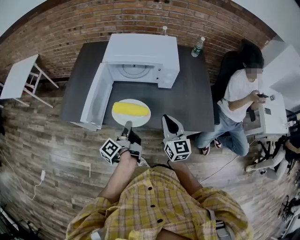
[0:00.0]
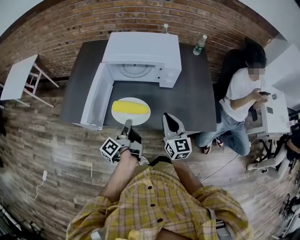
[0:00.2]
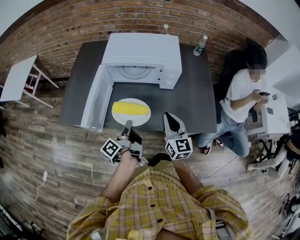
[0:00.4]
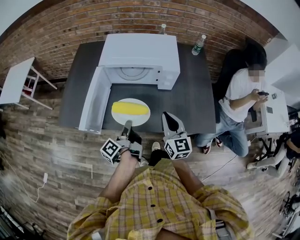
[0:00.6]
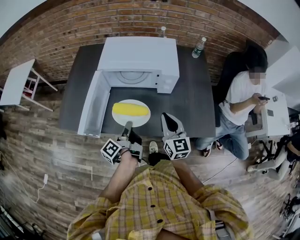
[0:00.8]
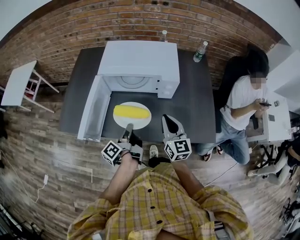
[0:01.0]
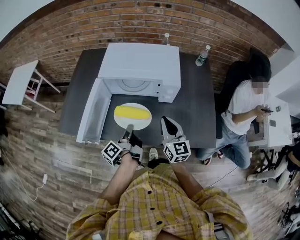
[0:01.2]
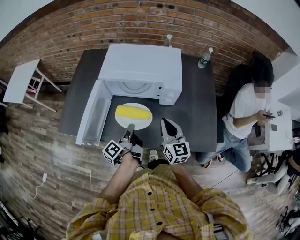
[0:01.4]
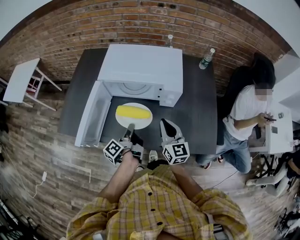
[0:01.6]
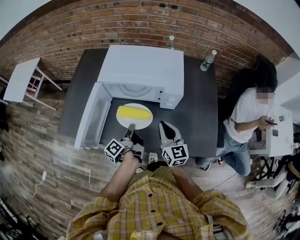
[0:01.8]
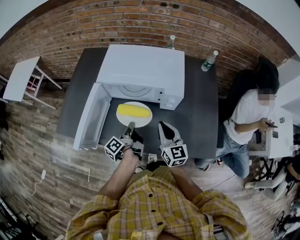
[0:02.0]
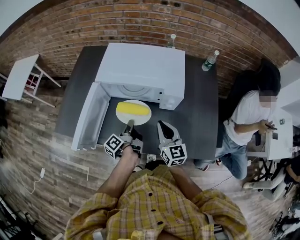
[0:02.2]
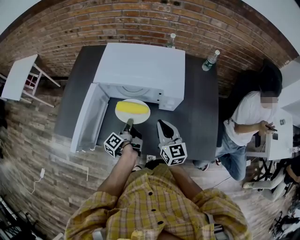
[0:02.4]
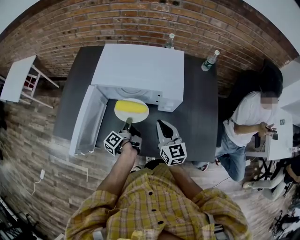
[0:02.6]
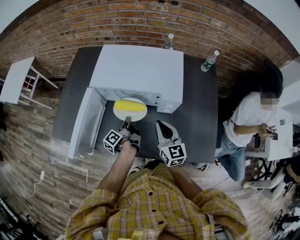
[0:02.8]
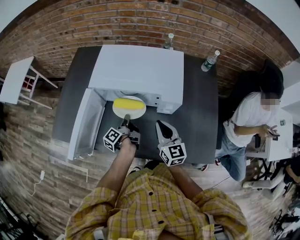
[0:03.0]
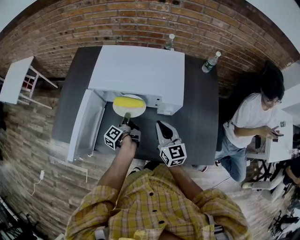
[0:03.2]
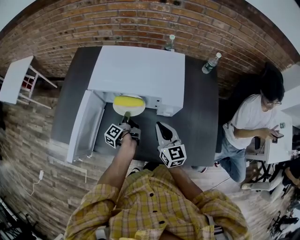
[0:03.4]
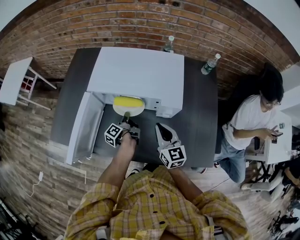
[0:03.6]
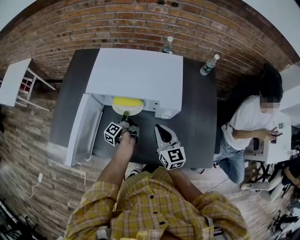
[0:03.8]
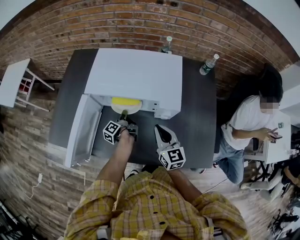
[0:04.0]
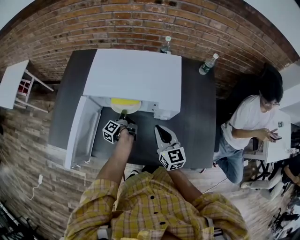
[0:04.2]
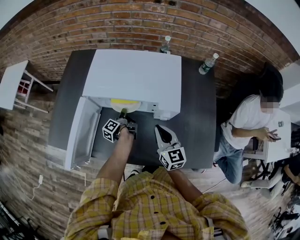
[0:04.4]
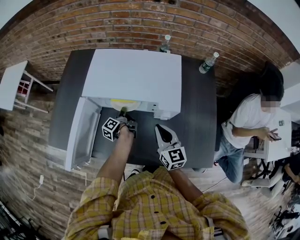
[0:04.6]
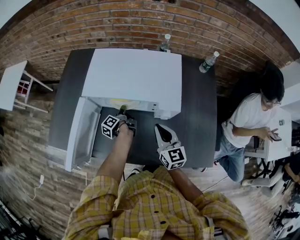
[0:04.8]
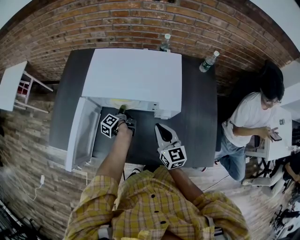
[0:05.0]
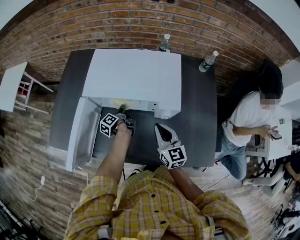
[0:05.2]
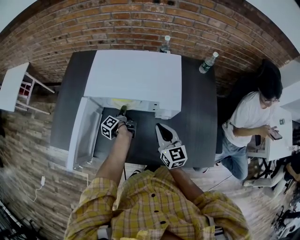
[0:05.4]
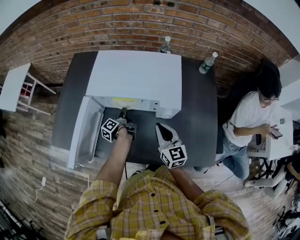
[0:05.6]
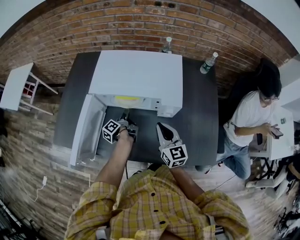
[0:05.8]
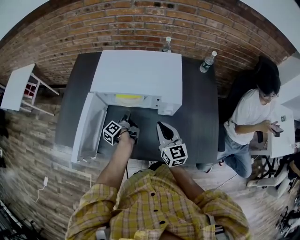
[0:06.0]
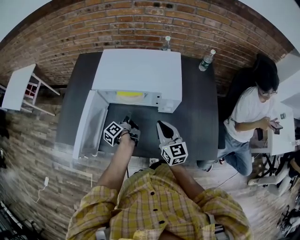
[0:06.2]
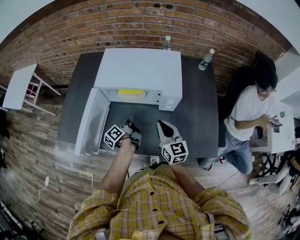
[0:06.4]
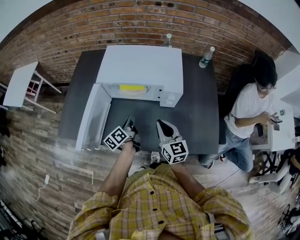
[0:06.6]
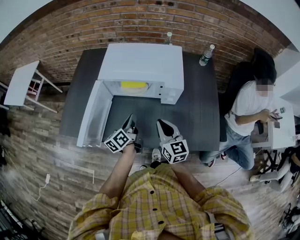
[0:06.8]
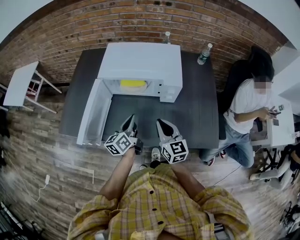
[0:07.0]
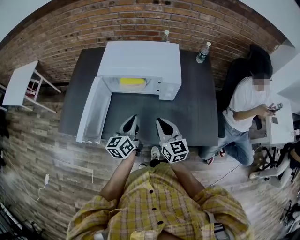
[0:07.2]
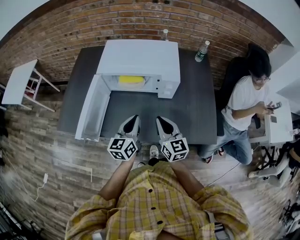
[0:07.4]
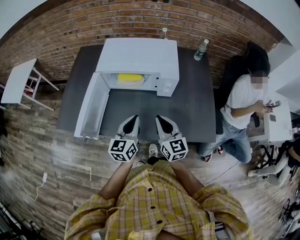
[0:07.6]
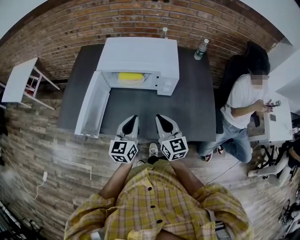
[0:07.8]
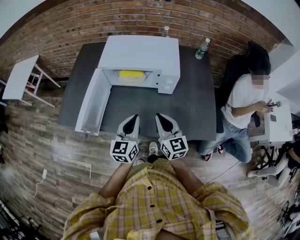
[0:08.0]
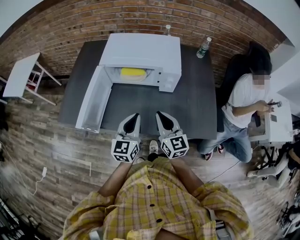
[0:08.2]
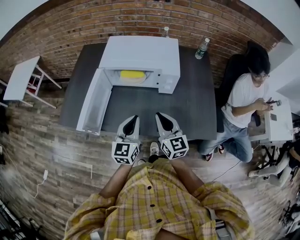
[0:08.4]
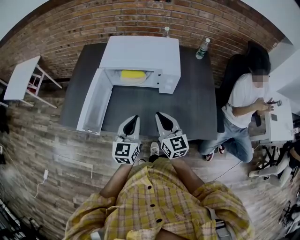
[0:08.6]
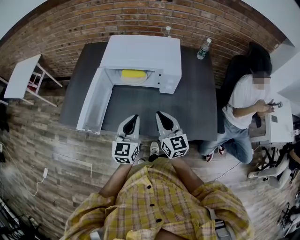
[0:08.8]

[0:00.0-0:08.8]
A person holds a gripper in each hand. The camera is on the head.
0:00.0 to 0:01.4: The right gripper shifts by approximately 10 cm.
0:01.4 to 0:03.0: The right gripper moves approximately 10 cm.
0:05.8 to 0:07.4: The right gripper ends up some 10 cm from where it was.

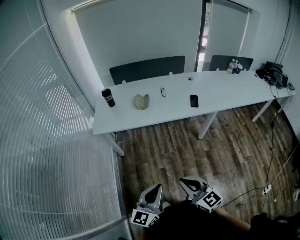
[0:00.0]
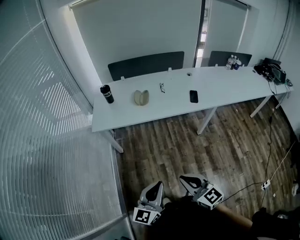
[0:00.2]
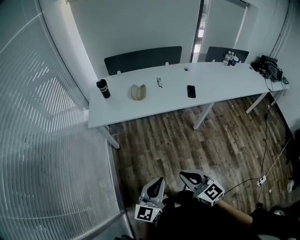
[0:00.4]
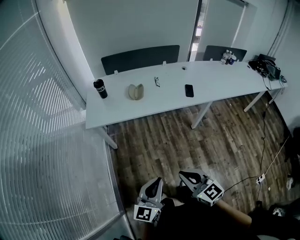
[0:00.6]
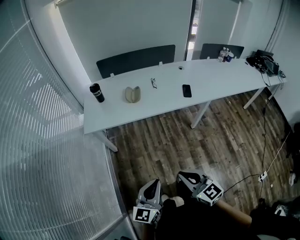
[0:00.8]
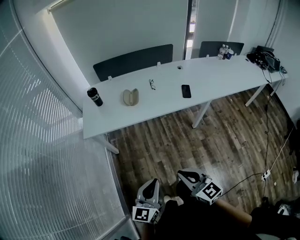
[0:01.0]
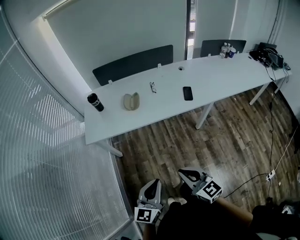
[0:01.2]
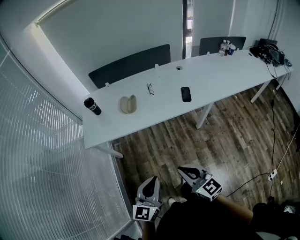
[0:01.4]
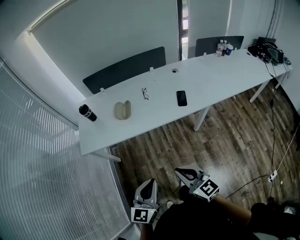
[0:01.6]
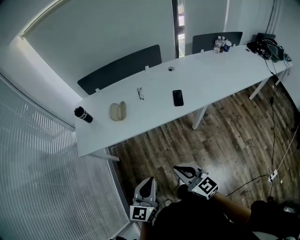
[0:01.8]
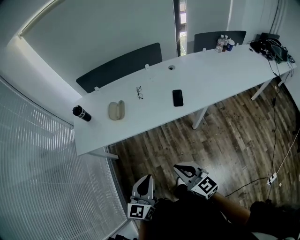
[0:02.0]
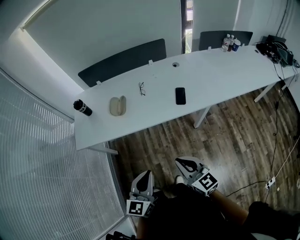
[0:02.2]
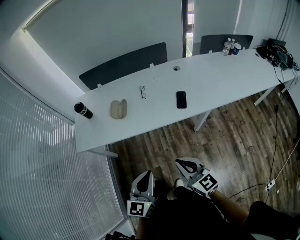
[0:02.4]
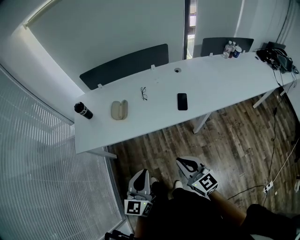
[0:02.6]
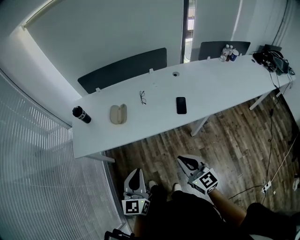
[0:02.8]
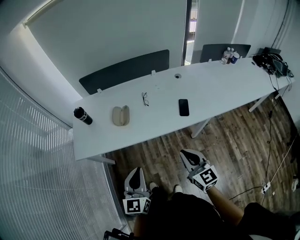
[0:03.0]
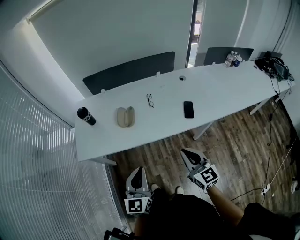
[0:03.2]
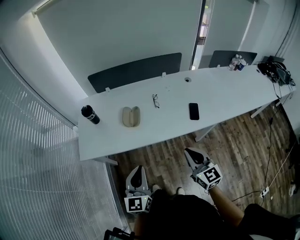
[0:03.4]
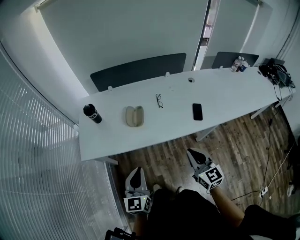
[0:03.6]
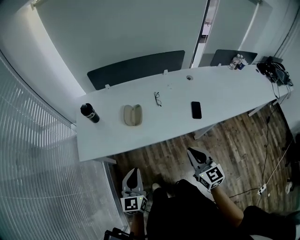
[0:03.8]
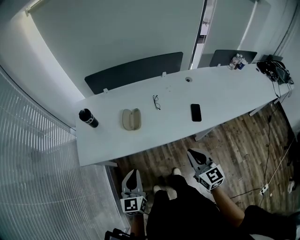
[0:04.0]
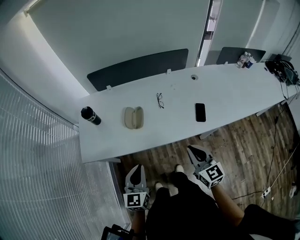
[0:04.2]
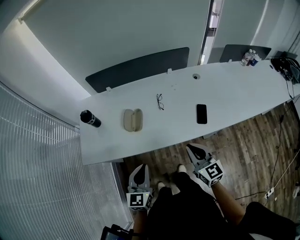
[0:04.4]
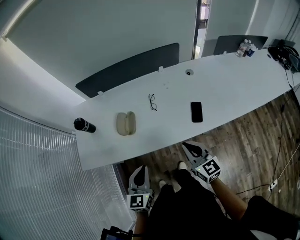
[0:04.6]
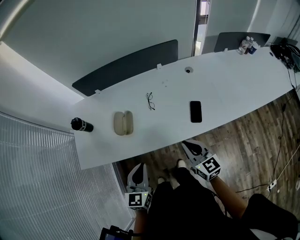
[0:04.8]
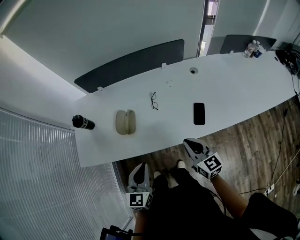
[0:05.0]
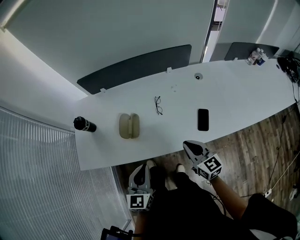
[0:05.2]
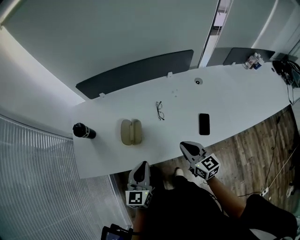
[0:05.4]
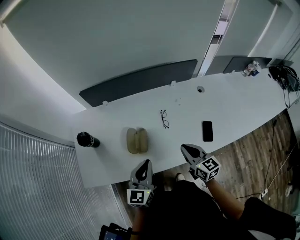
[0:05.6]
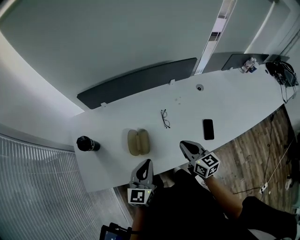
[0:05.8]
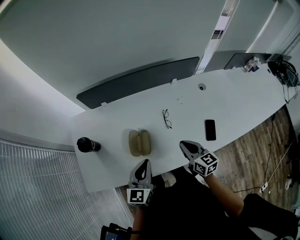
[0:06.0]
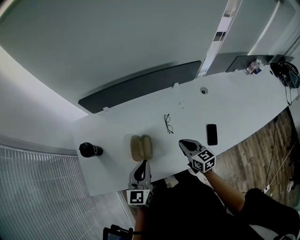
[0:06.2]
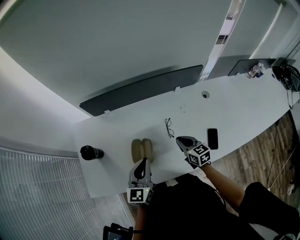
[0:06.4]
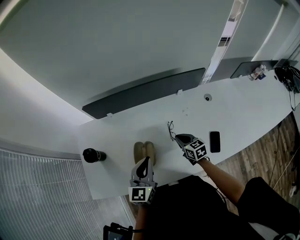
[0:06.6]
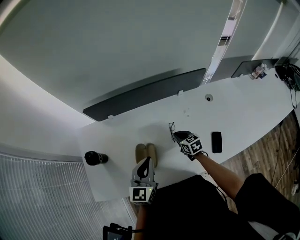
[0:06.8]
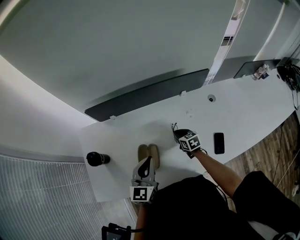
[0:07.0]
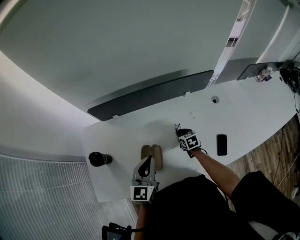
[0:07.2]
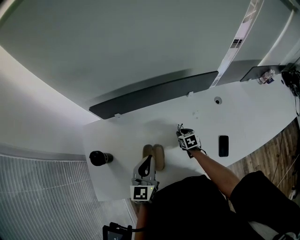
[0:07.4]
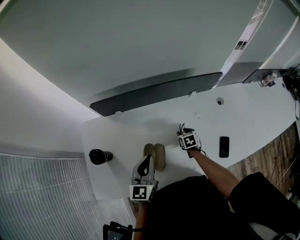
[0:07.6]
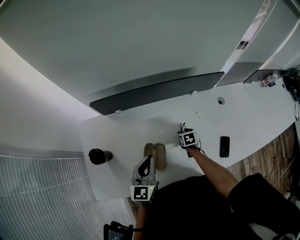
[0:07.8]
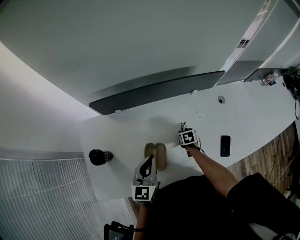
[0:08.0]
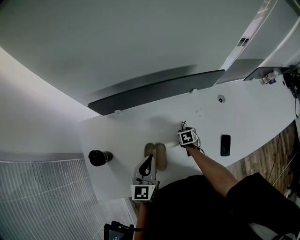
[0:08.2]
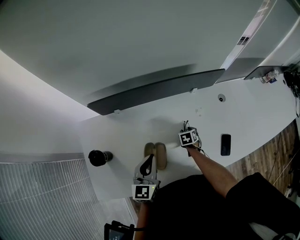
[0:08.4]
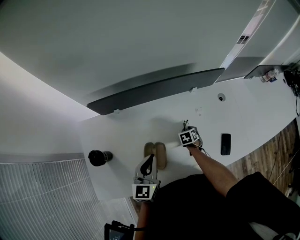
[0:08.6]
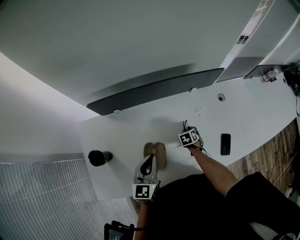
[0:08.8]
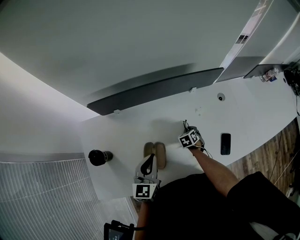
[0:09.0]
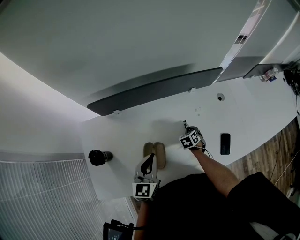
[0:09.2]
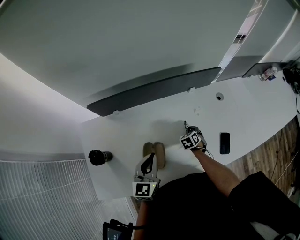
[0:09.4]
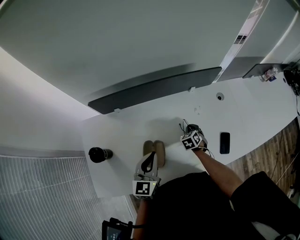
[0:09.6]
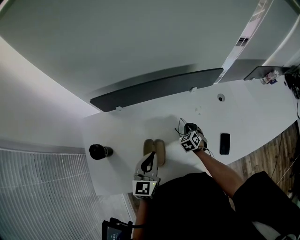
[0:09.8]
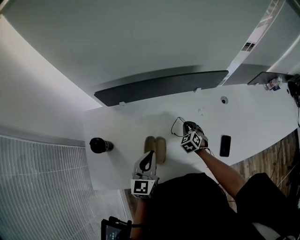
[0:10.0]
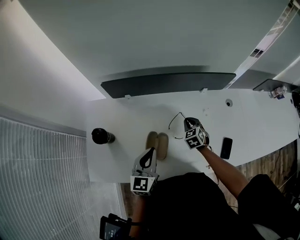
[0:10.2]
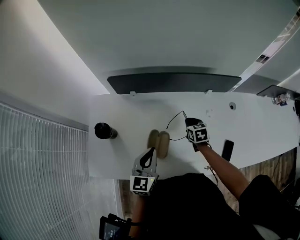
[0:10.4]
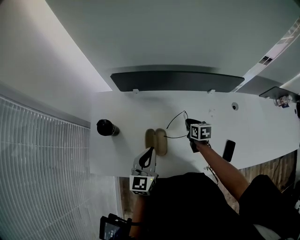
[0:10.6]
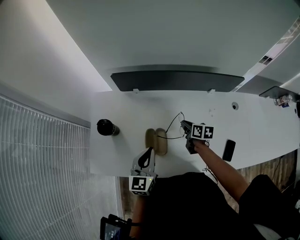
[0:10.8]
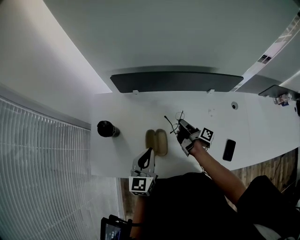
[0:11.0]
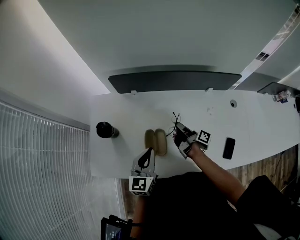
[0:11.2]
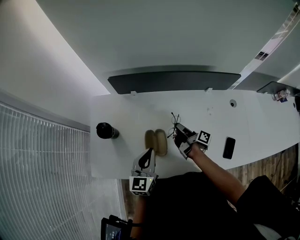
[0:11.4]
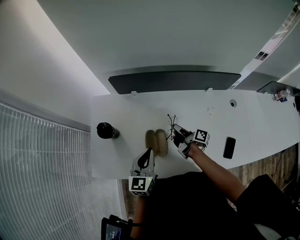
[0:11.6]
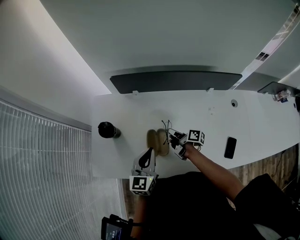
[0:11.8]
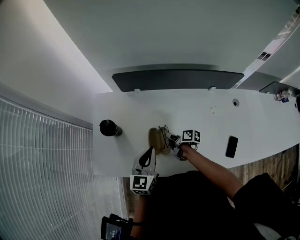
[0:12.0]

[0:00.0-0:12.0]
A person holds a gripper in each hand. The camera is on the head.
0:00.0 to 0:01.6: Both grippers travel together forward and to the right, approximately 20 cm.
0:01.6 to 0:03.0: The left gripper shifts approximately 15 cm forward. The right gripper is displaced forward and to the right by some 15 cm.
0:03.0 to 0:04.4: The right gripper travels forward by some 15 cm. The left gripper goes about 15 cm forward and downward.
0:04.4 to 0:06.0: Both grippers move forward, about 20 cm.
0:06.0 to 0:07.6: The right gripper travels downward and forward by roughly 30 cm, angles its fingers downward, by roughly 40 degrees, and opens its fingers, while the left gripper moves forward, about 10 cm.
0:07.6 to 0:09.0: The right gripper rotates approximately 20 degrees, and closes up.
0:09.0 to 0:10.4: The right gripper shifts some 10 cm upward, and swivels roughly 30 degrees, while the left gripper changes place by some 5 cm.
0:10.4 to 0:12.0: The right gripper shifts roughly 15 cm to the left and backward, and rolls clockwise, seen from behind, by about 50 degrees.

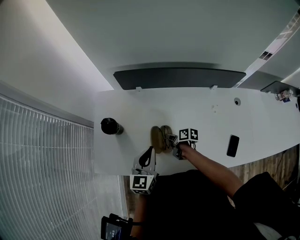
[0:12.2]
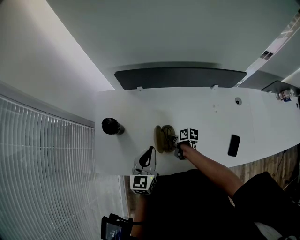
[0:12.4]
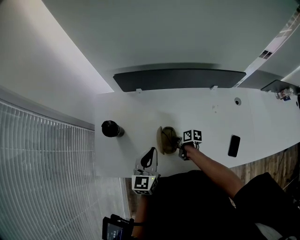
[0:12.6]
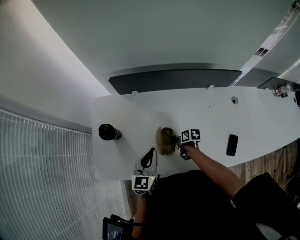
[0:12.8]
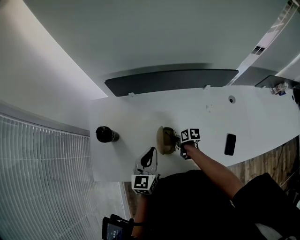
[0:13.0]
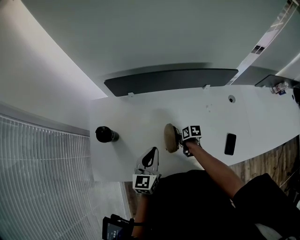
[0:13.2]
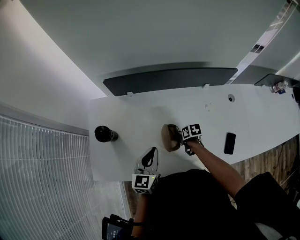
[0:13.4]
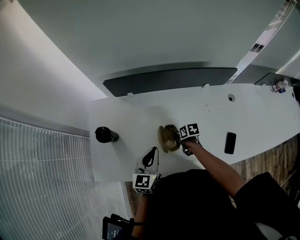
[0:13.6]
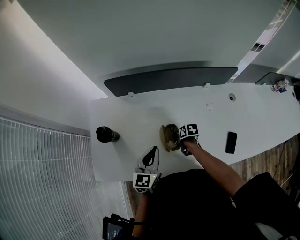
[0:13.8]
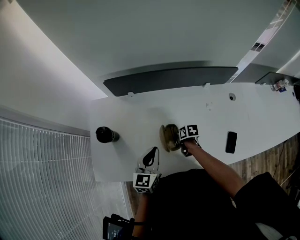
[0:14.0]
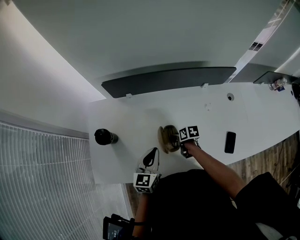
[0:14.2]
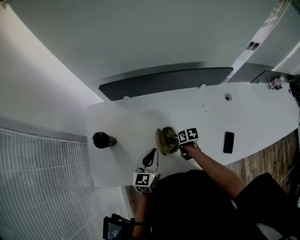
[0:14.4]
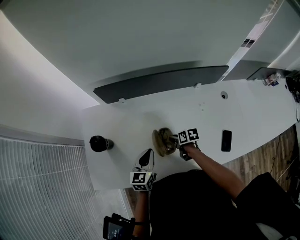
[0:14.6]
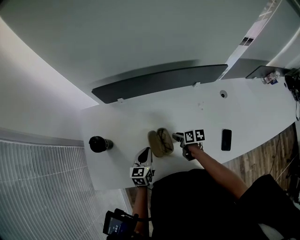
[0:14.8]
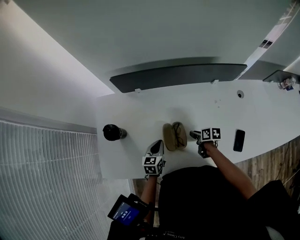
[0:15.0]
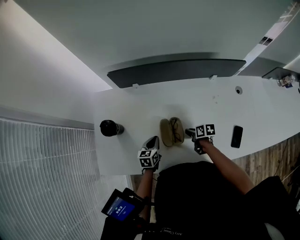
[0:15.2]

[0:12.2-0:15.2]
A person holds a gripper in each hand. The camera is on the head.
0:12.2 to 0:13.8: The right gripper is displaced to the right by about 10 cm, and rotates some 30 degrees.
0:13.8 to 0:15.2: The right gripper opens its fingers, while the left gripper travels downward by roughly 20 cm, and changes its angle by some 30 degrees.
